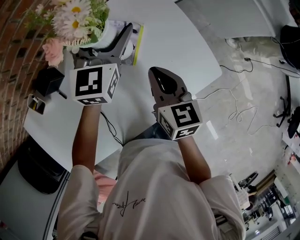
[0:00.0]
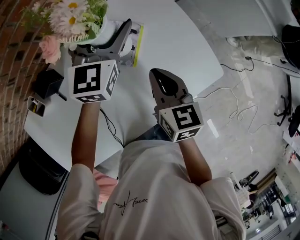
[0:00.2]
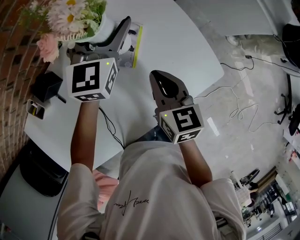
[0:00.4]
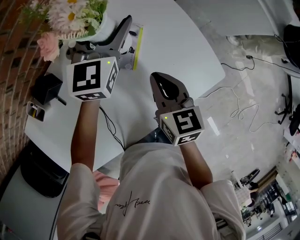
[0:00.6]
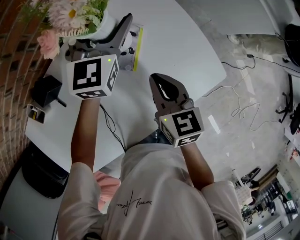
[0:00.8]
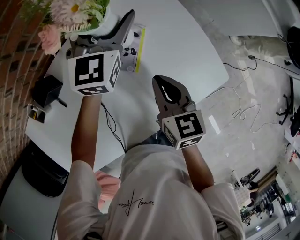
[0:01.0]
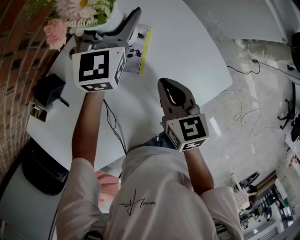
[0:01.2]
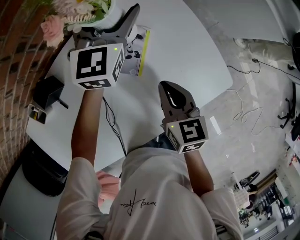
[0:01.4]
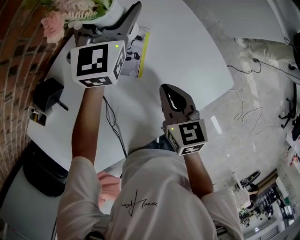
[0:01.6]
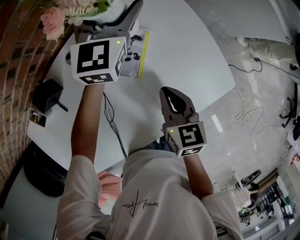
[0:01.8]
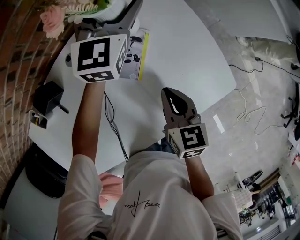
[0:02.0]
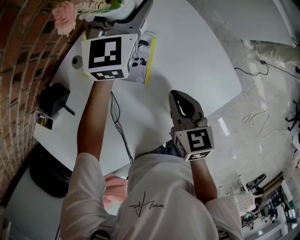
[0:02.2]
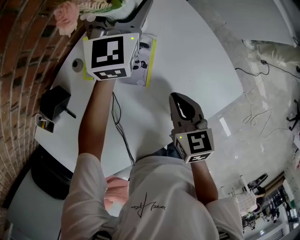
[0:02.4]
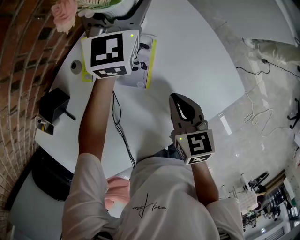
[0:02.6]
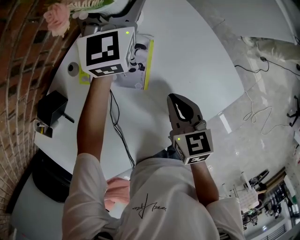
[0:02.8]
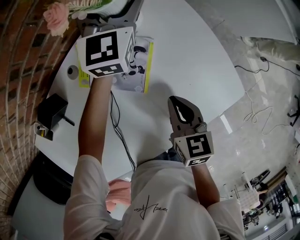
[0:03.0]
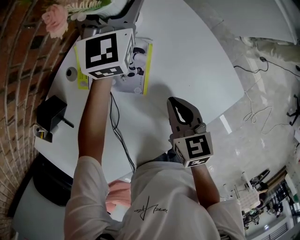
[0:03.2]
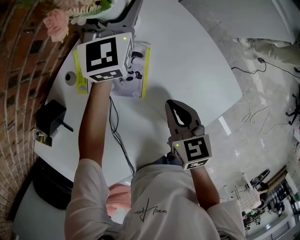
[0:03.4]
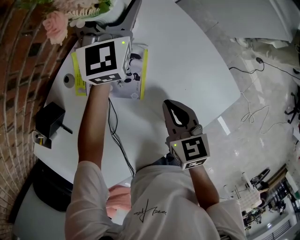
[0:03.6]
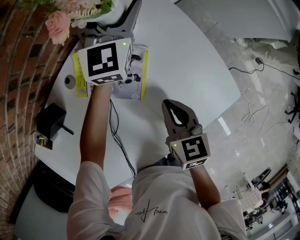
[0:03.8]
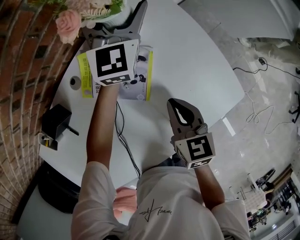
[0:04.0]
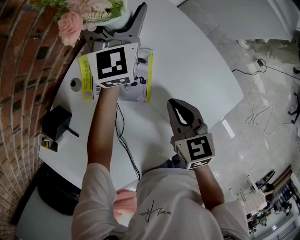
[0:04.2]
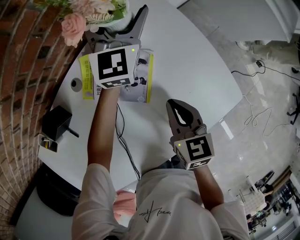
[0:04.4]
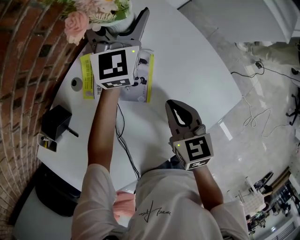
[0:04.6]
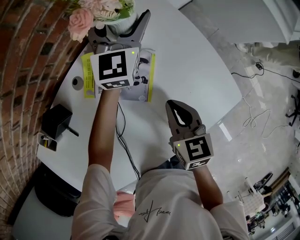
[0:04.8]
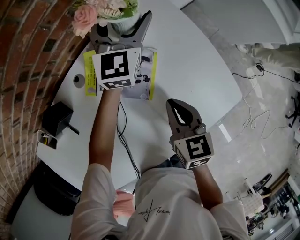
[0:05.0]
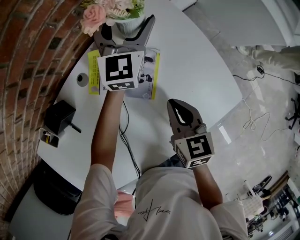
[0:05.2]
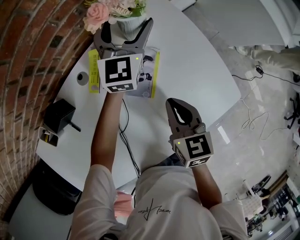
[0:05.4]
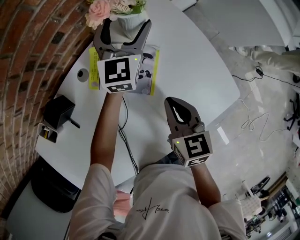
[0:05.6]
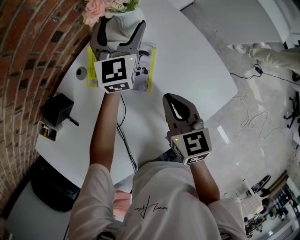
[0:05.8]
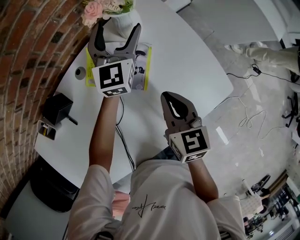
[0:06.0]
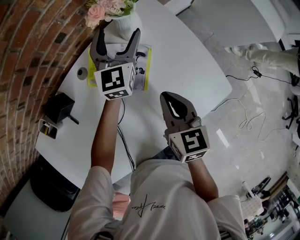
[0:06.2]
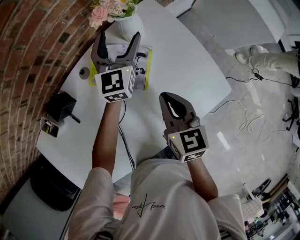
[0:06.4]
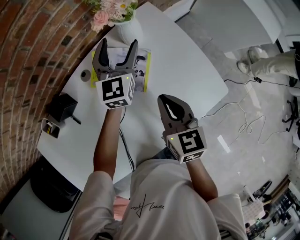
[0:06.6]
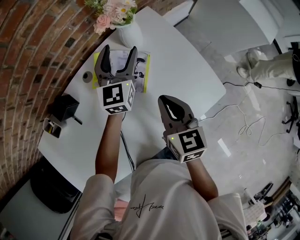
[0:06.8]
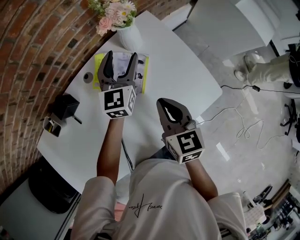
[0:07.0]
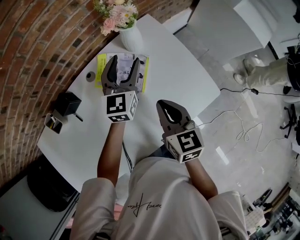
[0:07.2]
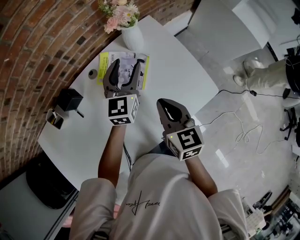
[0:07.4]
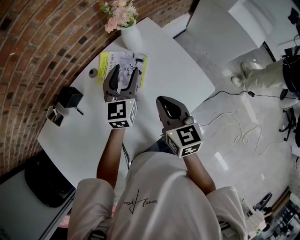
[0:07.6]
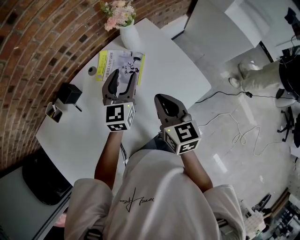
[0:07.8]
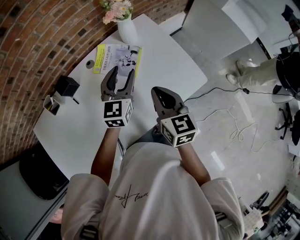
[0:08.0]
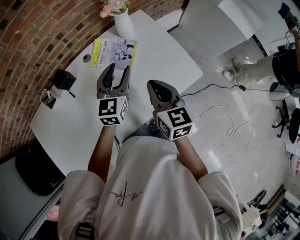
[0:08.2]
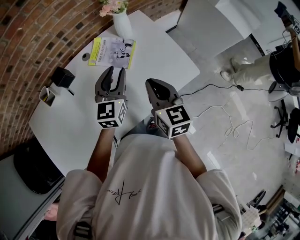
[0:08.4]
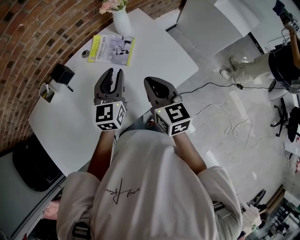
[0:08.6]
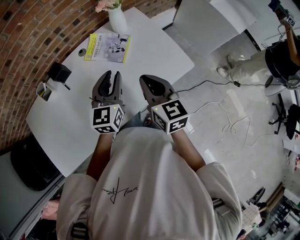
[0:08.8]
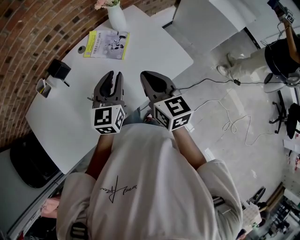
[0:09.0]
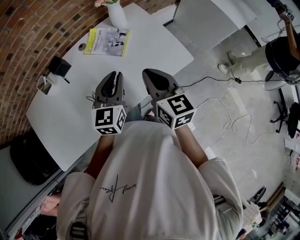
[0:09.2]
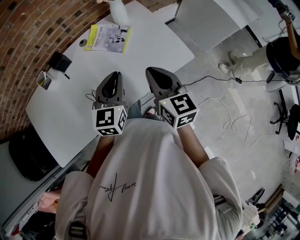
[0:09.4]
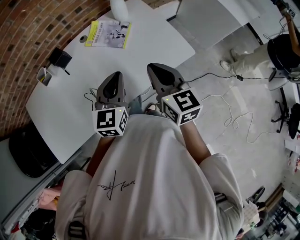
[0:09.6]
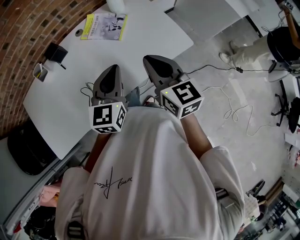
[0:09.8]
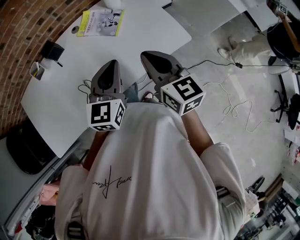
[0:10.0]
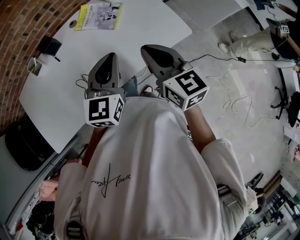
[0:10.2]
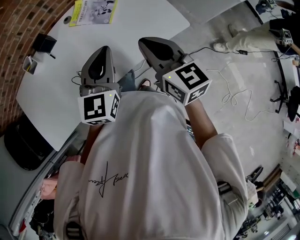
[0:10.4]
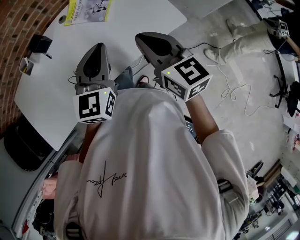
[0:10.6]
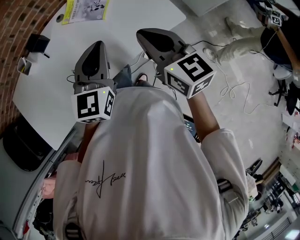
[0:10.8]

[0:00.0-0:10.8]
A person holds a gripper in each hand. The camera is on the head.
0:00.0 to 0:01.6: The right gripper shifts approximately 5 cm downward; the left gripper is displaced forward by some 10 cm.
0:01.6 to 0:03.0: The left gripper heads forward, covering roughly 5 cm.
0:03.0 to 0:04.6: There are only small adjustments of the grippers.
0:04.6 to 0:06.2: The left gripper is displaced backward by some 5 cm, while the right gripper is displaced upward by some 5 cm.
0:06.2 to 0:07.8: The right gripper goes some 15 cm upward and backward; the left gripper goes approximately 20 cm backward, and closes up.
0:07.8 to 0:09.2: The left gripper travels backward by some 20 cm, and closes; the right gripper goes some 10 cm backward.
0:09.2 to 0:10.8: The left gripper shifts by about 5 cm.

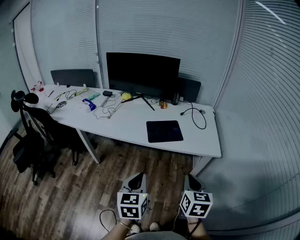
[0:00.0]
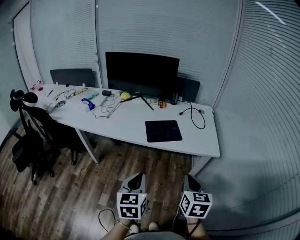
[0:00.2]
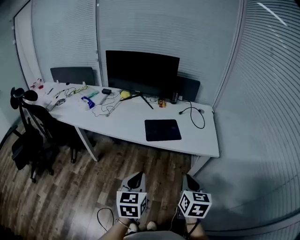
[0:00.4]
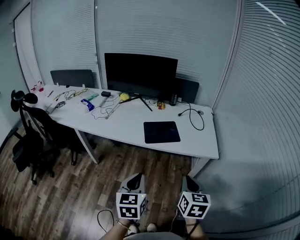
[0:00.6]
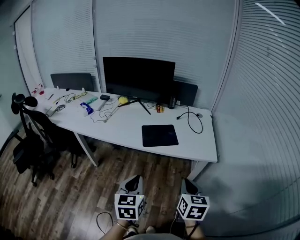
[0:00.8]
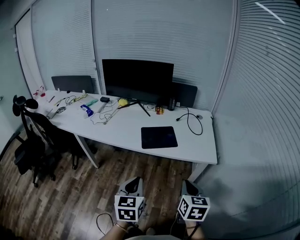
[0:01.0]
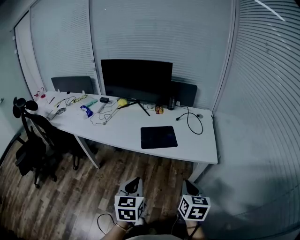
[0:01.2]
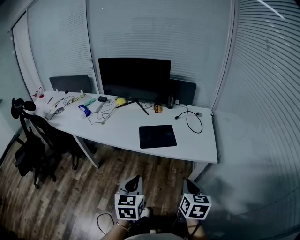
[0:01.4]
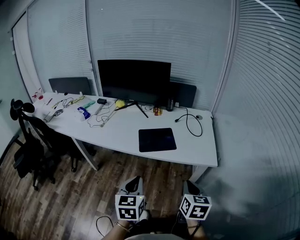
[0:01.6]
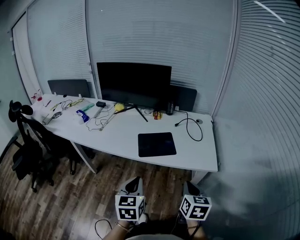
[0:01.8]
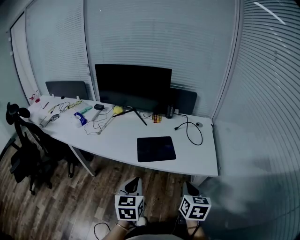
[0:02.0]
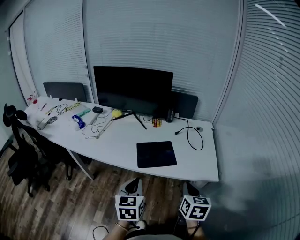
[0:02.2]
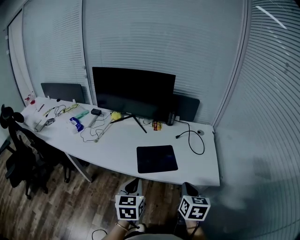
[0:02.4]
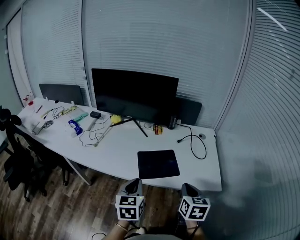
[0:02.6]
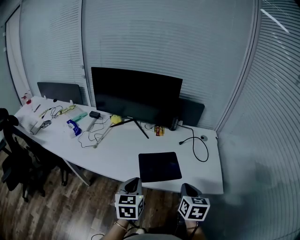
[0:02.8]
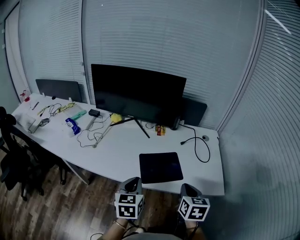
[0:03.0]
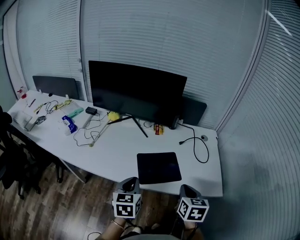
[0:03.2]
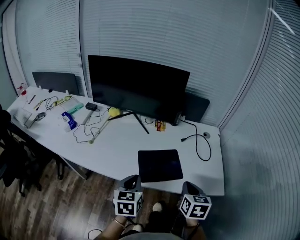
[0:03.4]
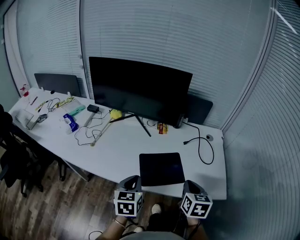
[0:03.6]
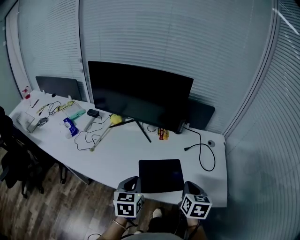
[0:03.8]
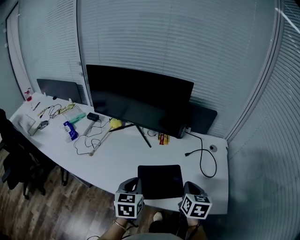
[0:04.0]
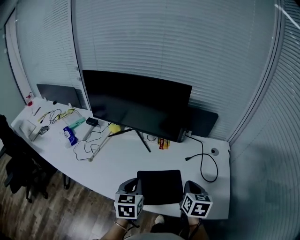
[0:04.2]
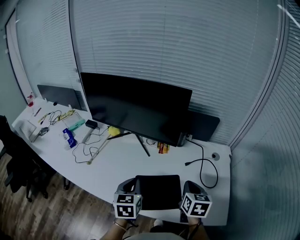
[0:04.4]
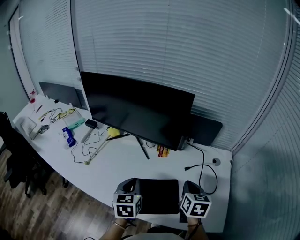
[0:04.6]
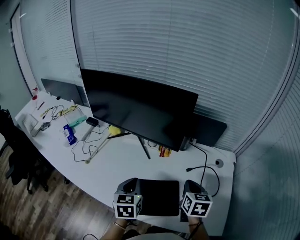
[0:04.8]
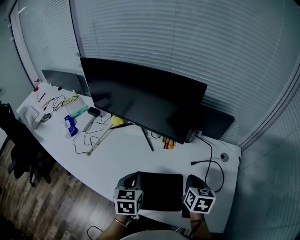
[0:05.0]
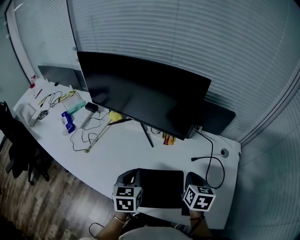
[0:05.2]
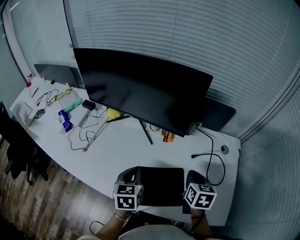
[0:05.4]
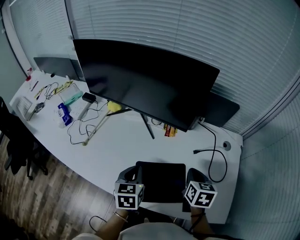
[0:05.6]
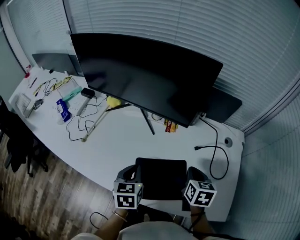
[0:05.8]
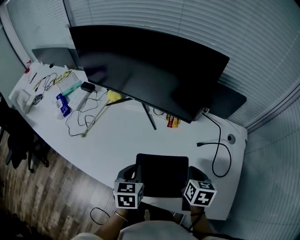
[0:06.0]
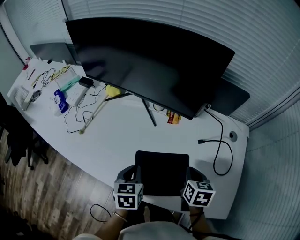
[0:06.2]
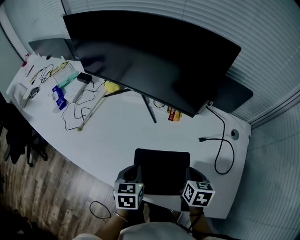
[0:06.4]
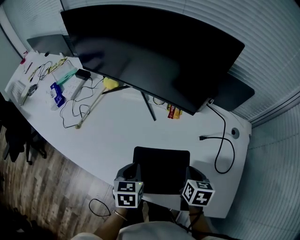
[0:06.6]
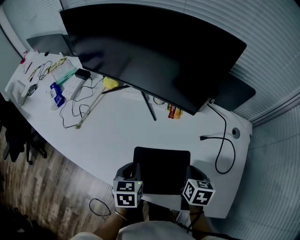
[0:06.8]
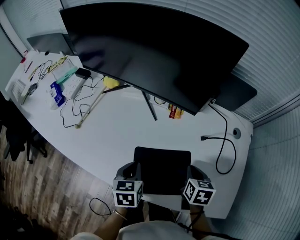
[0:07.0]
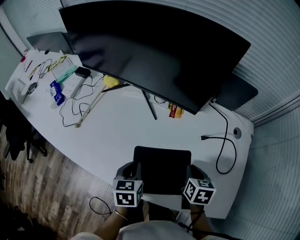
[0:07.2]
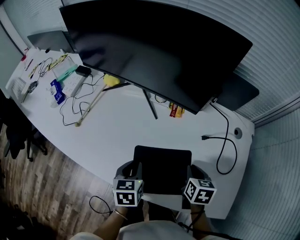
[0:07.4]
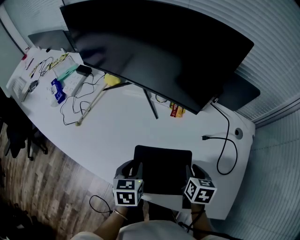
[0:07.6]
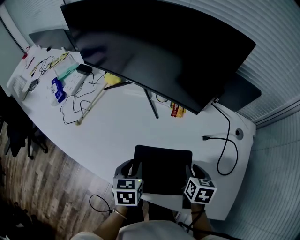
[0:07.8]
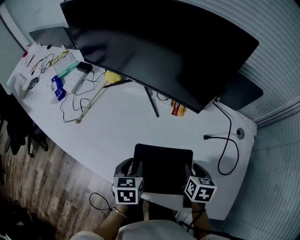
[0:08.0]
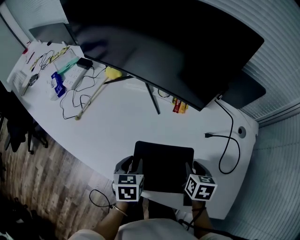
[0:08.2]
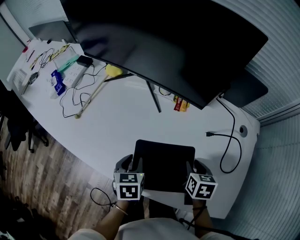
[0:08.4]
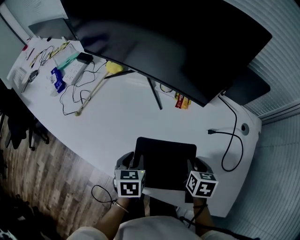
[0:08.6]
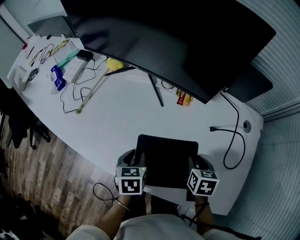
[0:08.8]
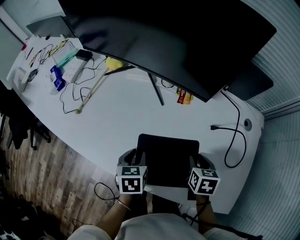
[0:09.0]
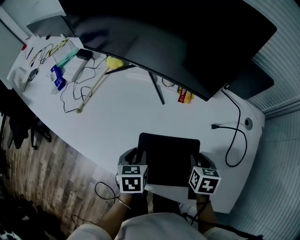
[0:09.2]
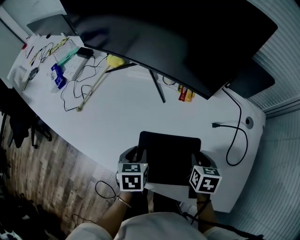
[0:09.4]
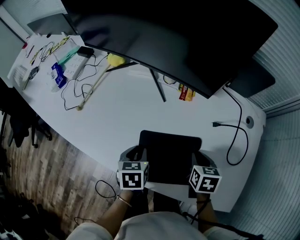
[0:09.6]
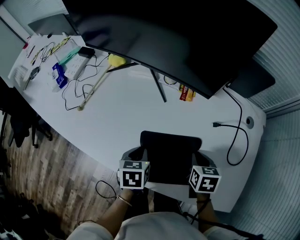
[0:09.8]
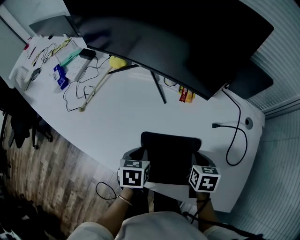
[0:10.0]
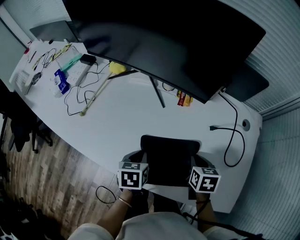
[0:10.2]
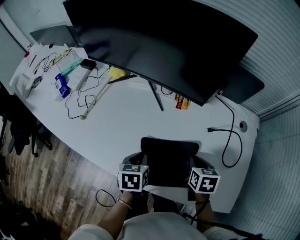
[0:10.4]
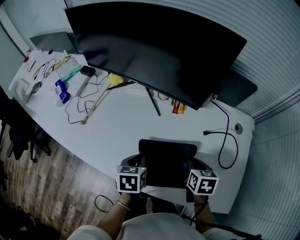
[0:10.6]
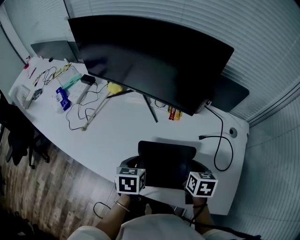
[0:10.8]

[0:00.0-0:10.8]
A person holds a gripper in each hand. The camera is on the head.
0:00.0 to 0:01.6: The right gripper travels to the right and forward by approximately 10 cm. Meanwhile the left gripper heads forward, covering about 5 cm.
0:01.6 to 0:03.0: Both grippers travel together forward, roughly 20 cm.
0:03.0 to 0:04.6: Both grippers travel together forward, roughly 20 cm.
0:04.6 to 0:06.2: The two grippers go approximately 10 cm downward.
0:06.2 to 0:07.8: The left gripper opens up. Meanwhile the right gripper opens its fingers.
0:07.8 to 0:09.2: The grippers make only small movements.
0:09.2 to 0:10.8: Both grippers travel together upward, some 5 cm. The left gripper closes its fingers. Meanwhile the right gripper closes.

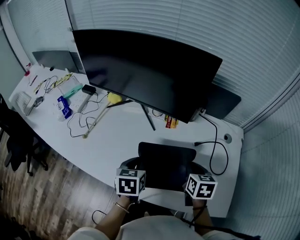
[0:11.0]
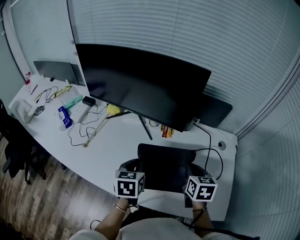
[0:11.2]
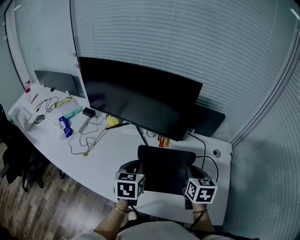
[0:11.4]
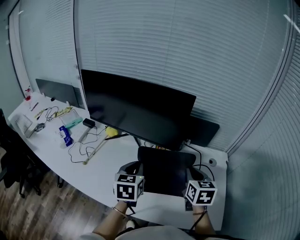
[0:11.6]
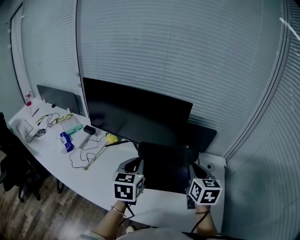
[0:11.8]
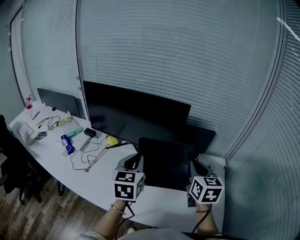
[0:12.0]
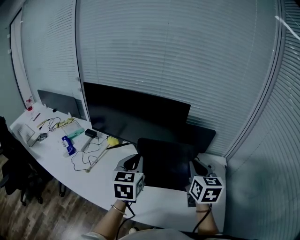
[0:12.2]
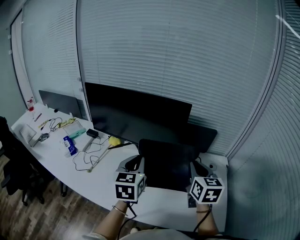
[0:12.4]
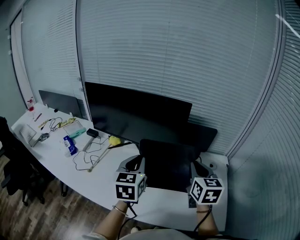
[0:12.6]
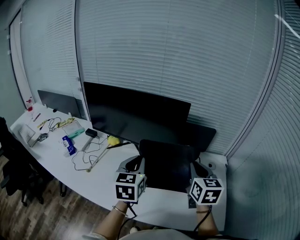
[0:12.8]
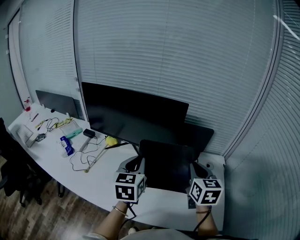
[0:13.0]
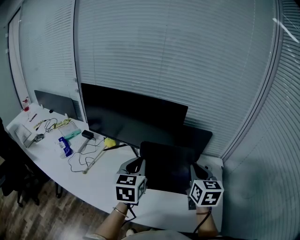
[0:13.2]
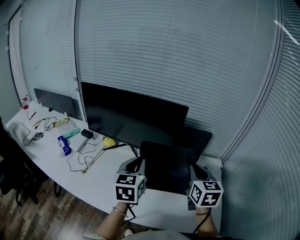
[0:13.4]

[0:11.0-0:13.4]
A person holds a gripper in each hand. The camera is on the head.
0:11.0 to 0:12.2: The two grippers go approximately 20 cm upward. The left gripper turns by some 30 degrees. The right gripper rotates some 30 degrees.
0:12.2 to 0:13.4: There are only small adjustments of the grippers.
